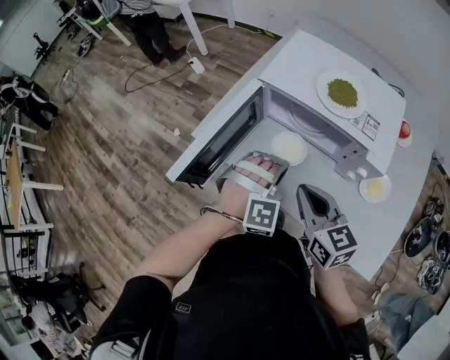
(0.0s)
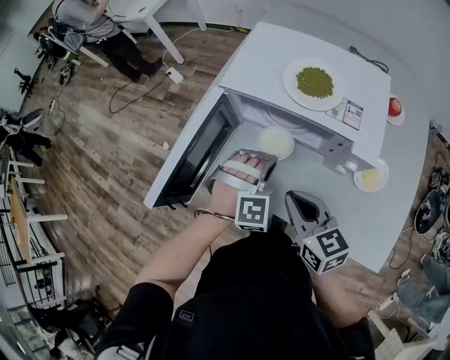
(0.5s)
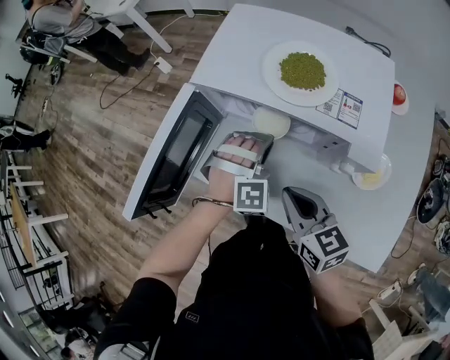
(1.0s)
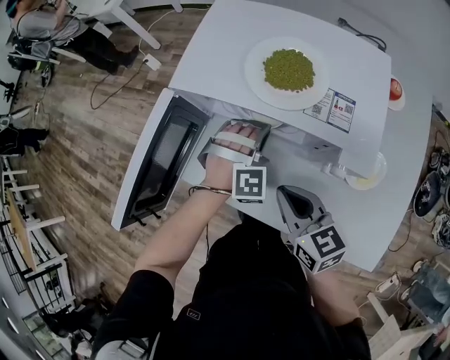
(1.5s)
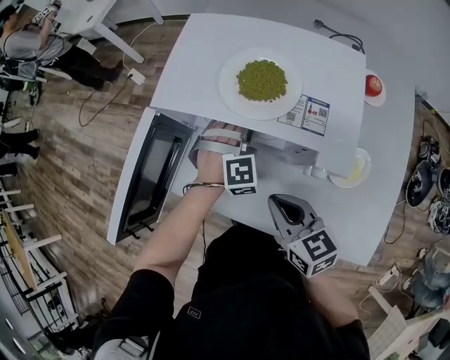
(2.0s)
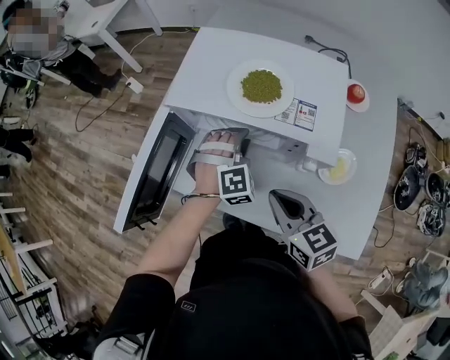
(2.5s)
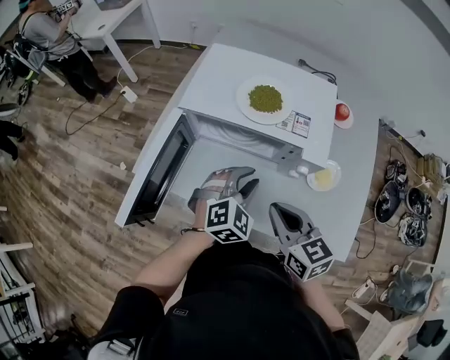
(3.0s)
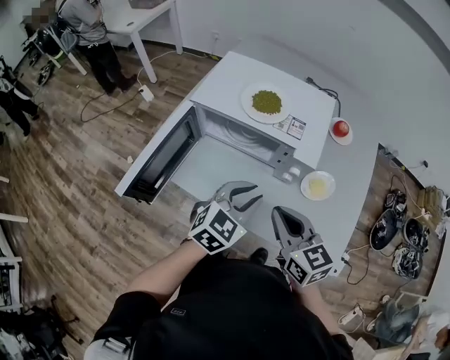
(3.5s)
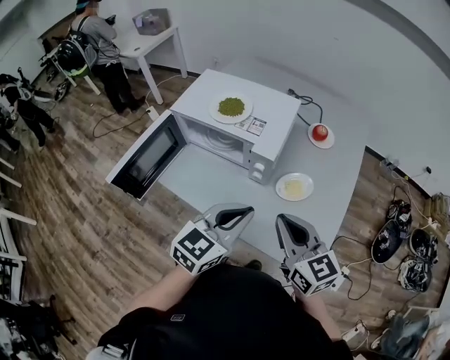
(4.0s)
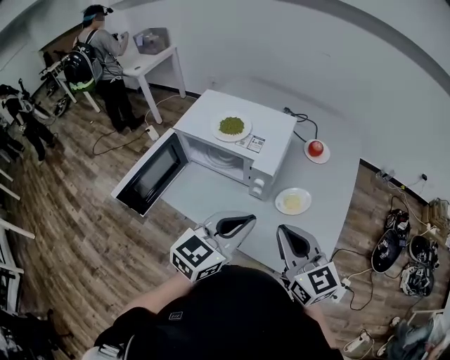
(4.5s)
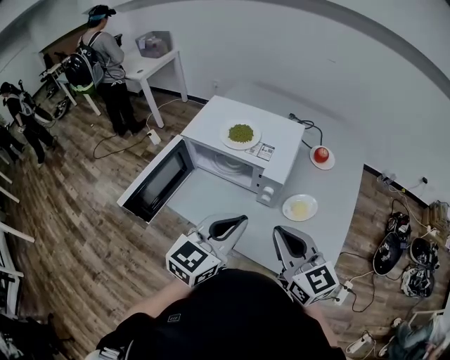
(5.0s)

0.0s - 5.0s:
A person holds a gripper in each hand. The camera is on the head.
0.0s - 2.5s: The left gripper is displaced forward and to the right by some 15 cm. Meanwhile the right gripper moves to the right, some 10 cm.
2.5s - 5.0s: The right gripper moves upward, backward and to the right, roughly 25 cm, and swivels approximately 20 degrees. The left gripper shifts roughly 35 cm backward and upward, twists about 60 degrees counterclockwise, seen from behind, and closes its fingers.

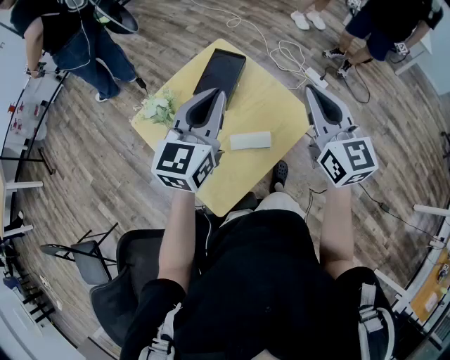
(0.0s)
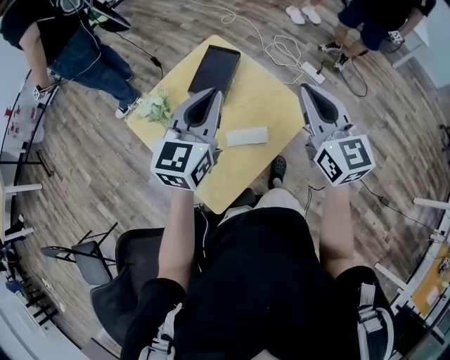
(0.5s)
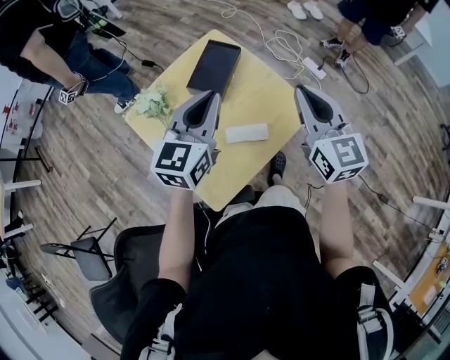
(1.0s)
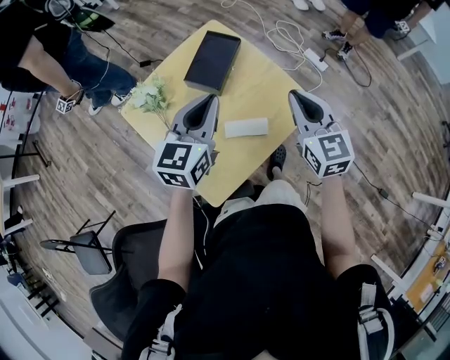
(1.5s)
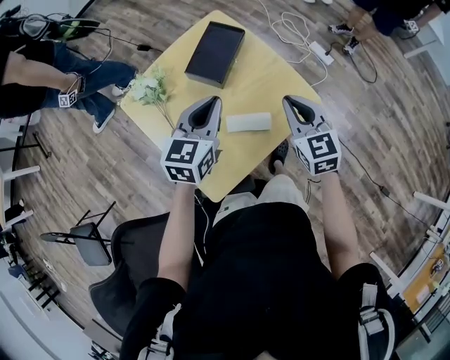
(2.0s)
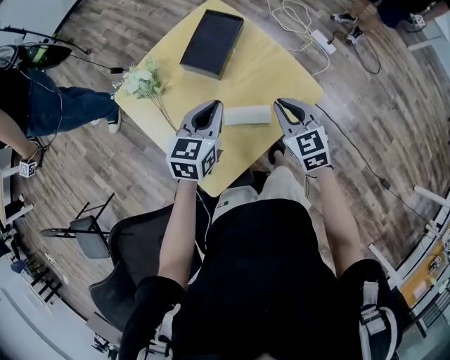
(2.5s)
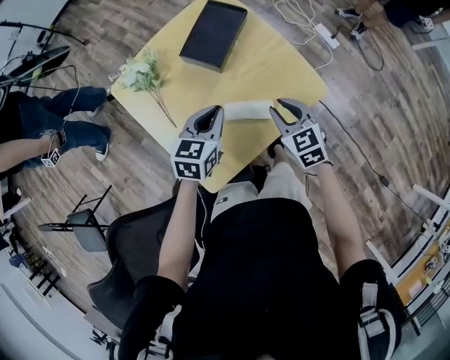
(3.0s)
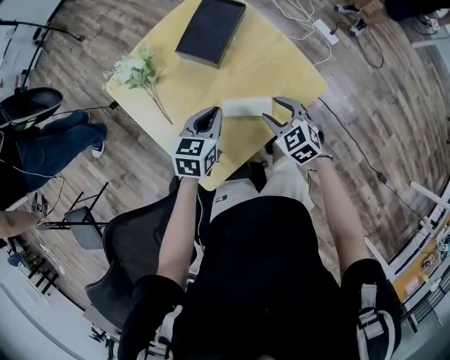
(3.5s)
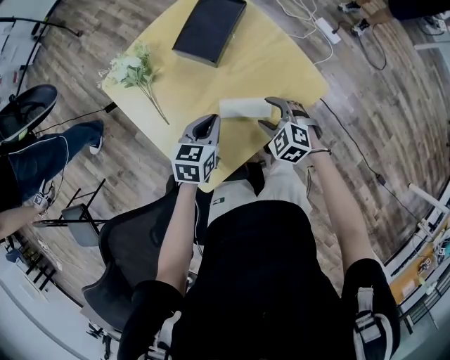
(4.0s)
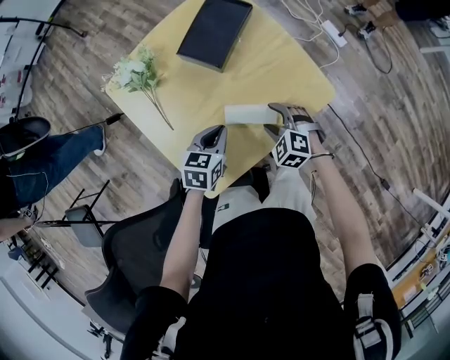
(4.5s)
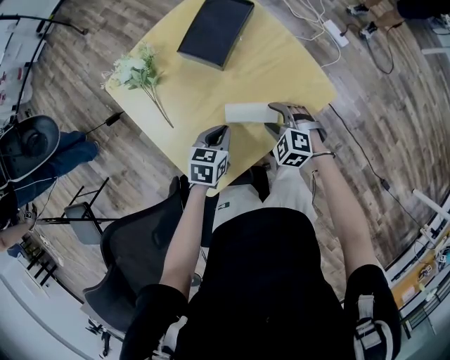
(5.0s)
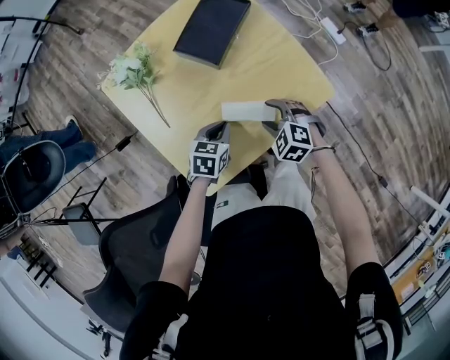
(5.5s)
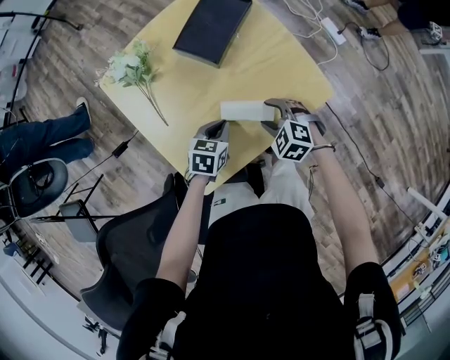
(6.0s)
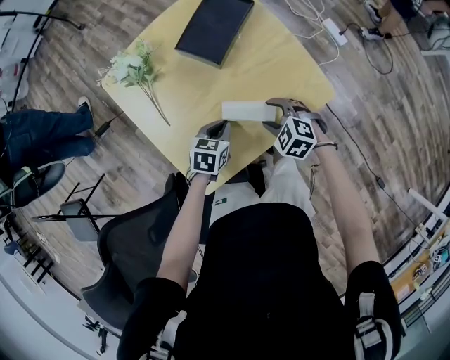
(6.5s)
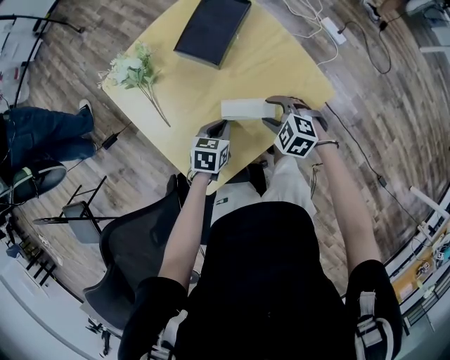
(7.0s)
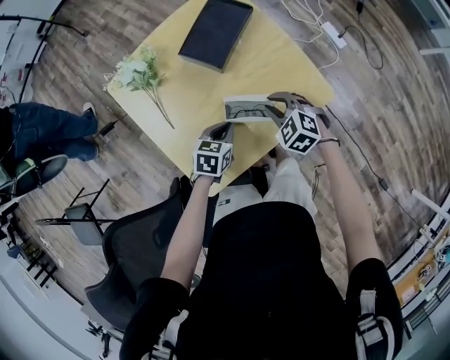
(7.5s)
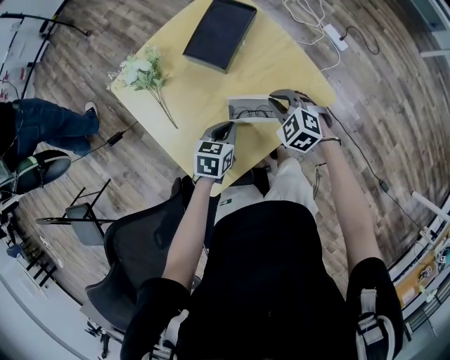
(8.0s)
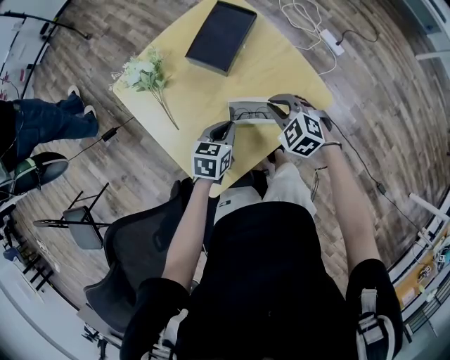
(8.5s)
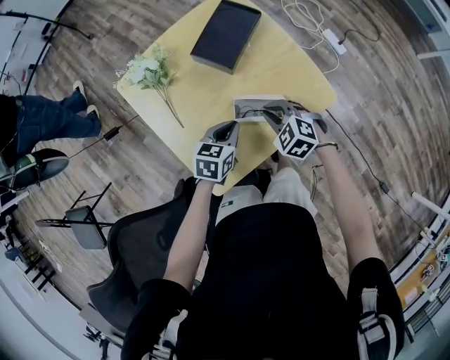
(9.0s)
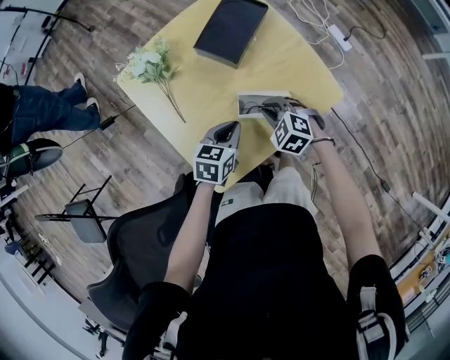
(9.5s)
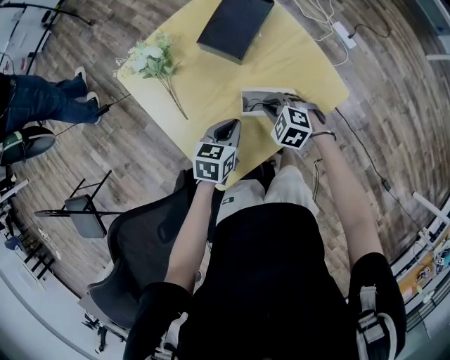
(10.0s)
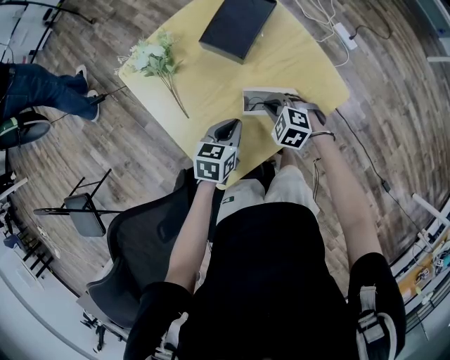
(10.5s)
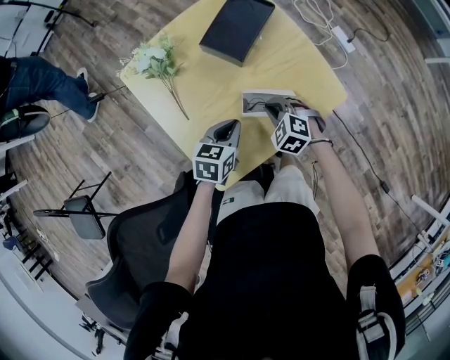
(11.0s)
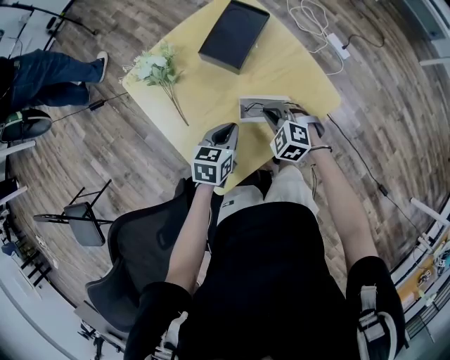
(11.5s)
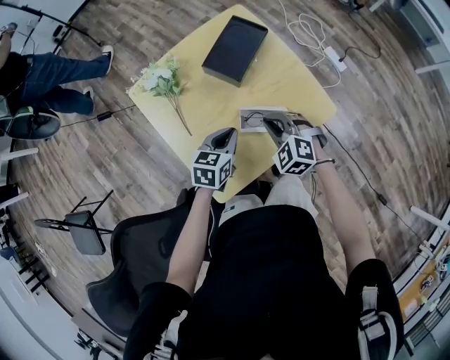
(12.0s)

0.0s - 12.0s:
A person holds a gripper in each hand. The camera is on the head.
0.0s - 2.0s: Both grippers move downward, some 15 cm. The right gripper rotates approximately 20 degrees.
2.0s - 4.0s: The two grippers go about 20 cm downward. The right gripper tips its fingers downward by approximately 30 degrees, and opens; the left gripper rotates some 20 degrees.
4.0s - 6.0s: The left gripper is displaced downward by roughly 10 cm.
6.0s - 8.0s: The right gripper heads forward and upward, covering roughly 10 cm, and closes its fingers.
8.0s - 10.0s: The right gripper is displaced to the left and downward by some 10 cm.
10.0s - 12.0s: The right gripper is displaced upward by some 10 cm. The left gripper moves upward, about 5 cm.

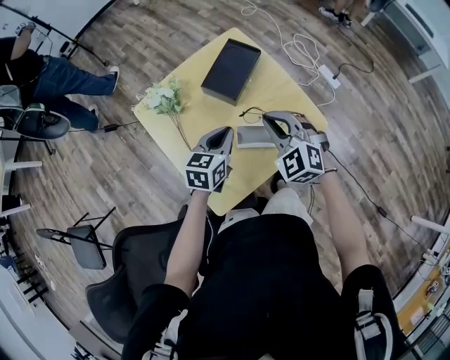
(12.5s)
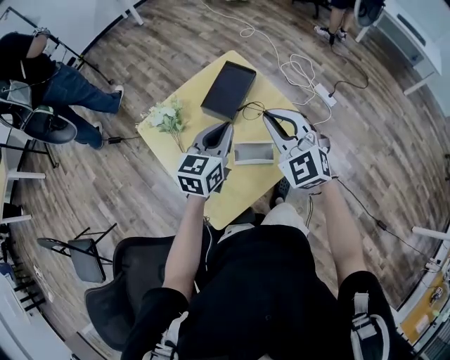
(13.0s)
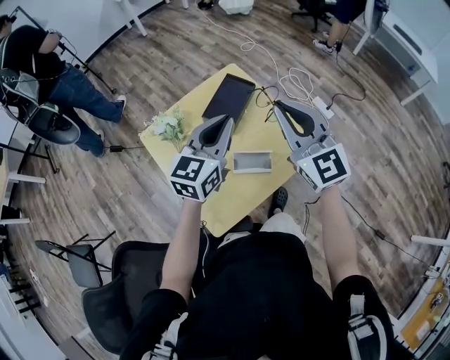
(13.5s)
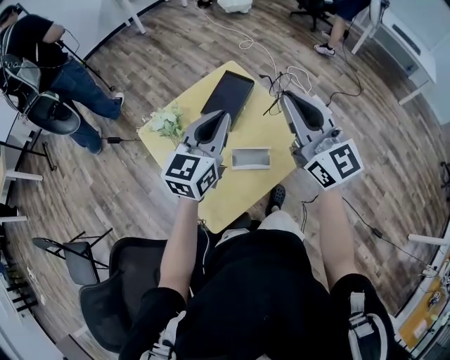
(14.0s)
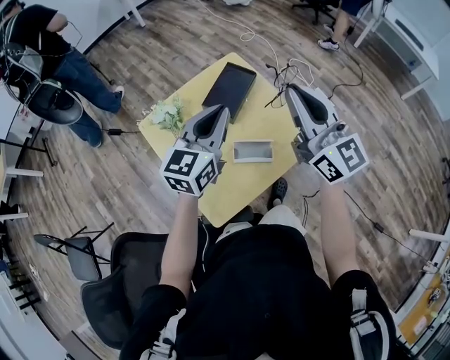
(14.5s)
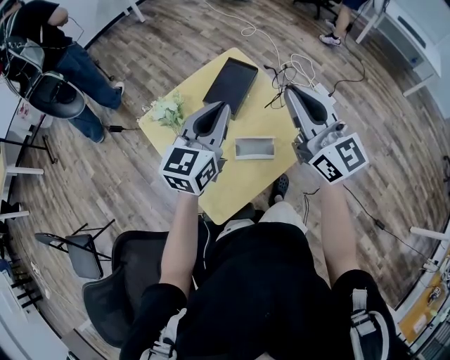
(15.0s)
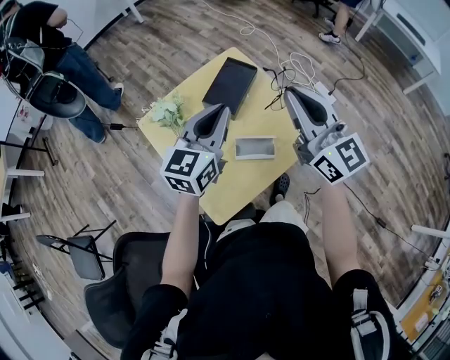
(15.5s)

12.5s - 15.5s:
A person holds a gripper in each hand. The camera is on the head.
12.5s - 14.0s: The two grippers go roughly 25 cm upward. The left gripper swivels some 30 degrees. Meanwhile the right gripper tips its fingers upward by about 40 degrees.
14.0s - 15.5s: The grippers stay close to where they were, moving slightly.

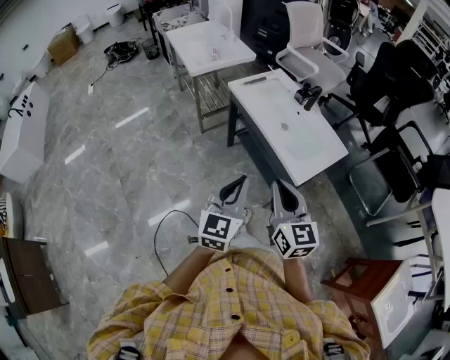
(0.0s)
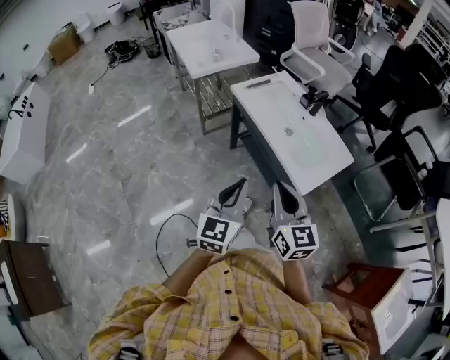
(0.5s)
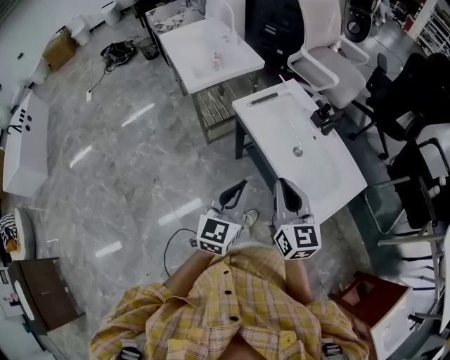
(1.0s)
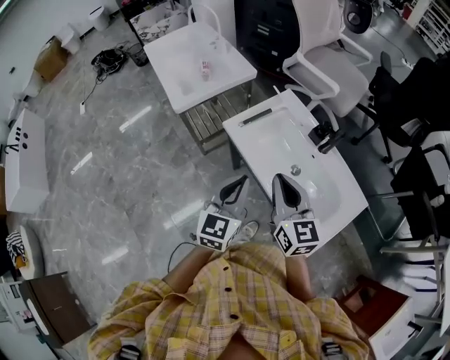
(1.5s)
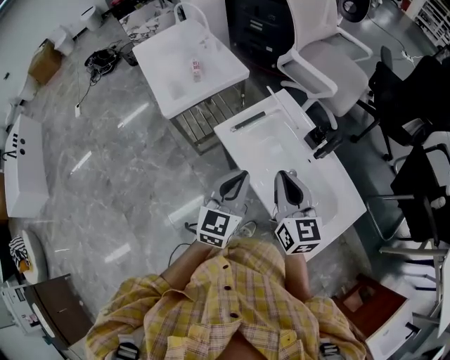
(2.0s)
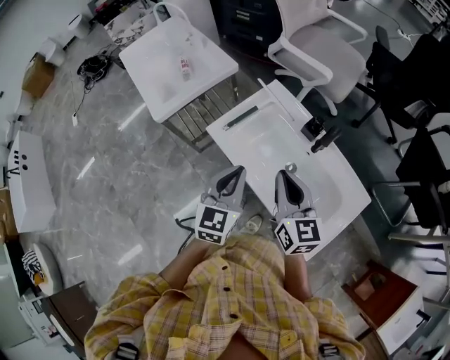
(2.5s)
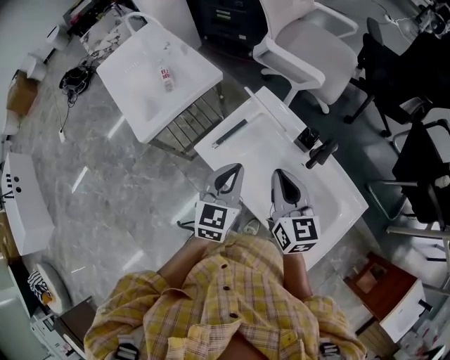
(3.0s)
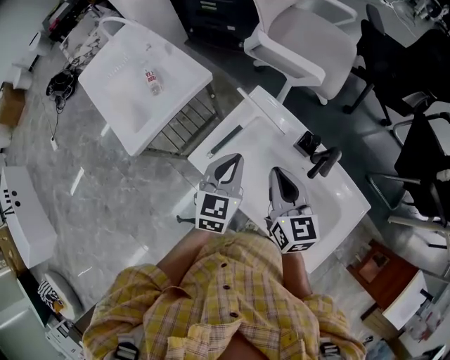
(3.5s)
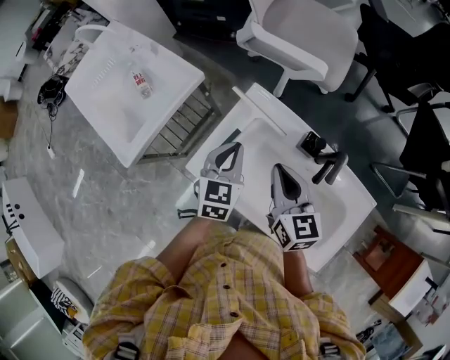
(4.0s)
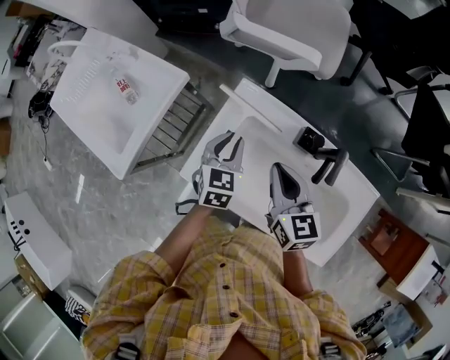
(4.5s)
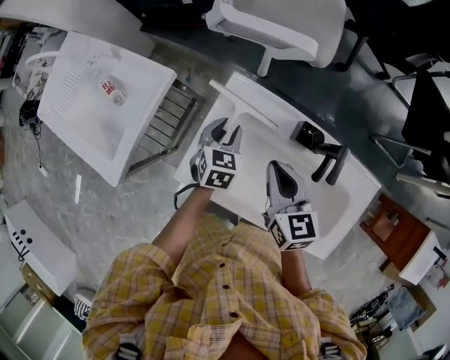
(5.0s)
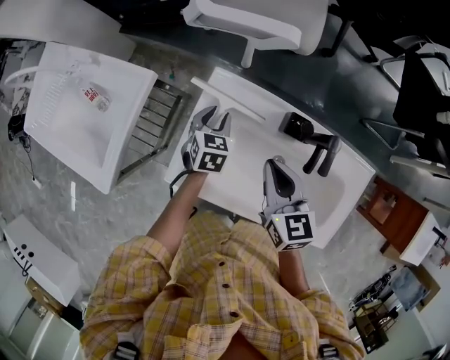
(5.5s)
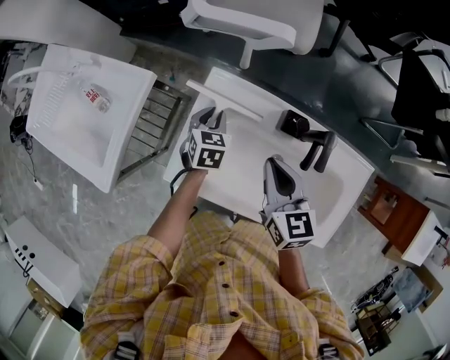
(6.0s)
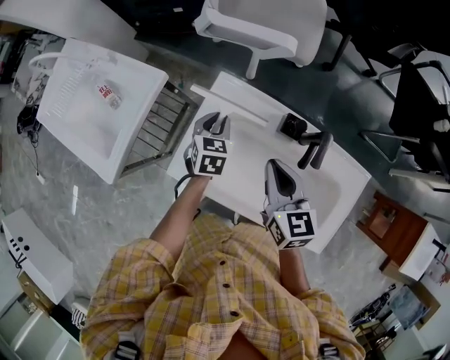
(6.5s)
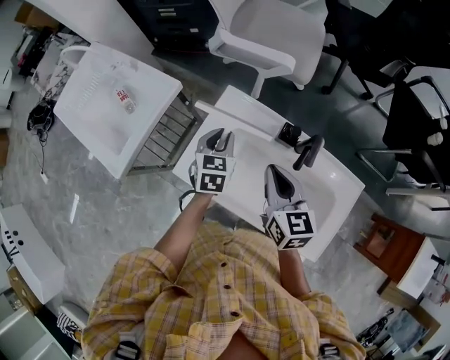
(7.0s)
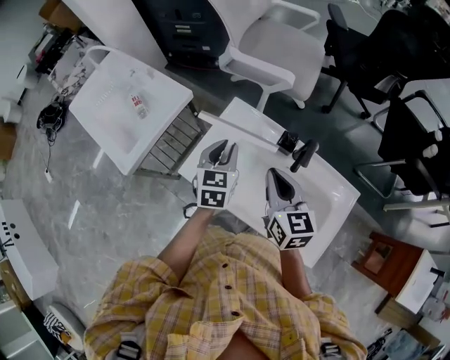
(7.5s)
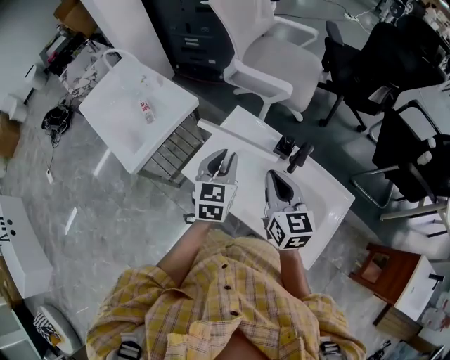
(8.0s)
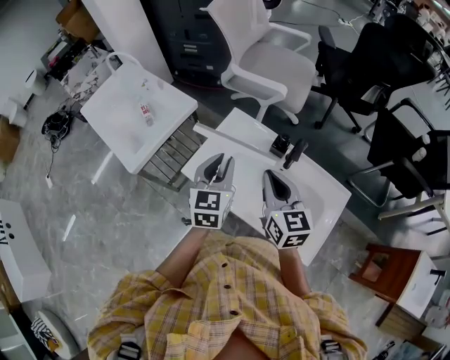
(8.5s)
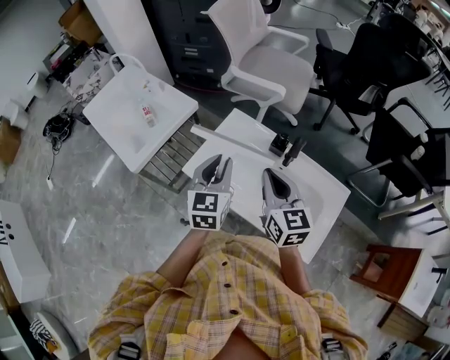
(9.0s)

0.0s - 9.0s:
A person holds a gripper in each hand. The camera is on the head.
0.0s - 2.0s: Both grippers are carried forward, some 40 cm.
2.0s - 4.5s: The grippers both shift forward and downward by approximately 30 cm. The right gripper swivels approximately 30 degrees. Meanwhile the left gripper turns by roughly 30 degrees.
4.5s - 7.0s: The left gripper reaches roughly 10 cm downward, then returns. Meanwhile the right gripper ends up some 5 cm from where it was.
7.0s - 9.0s: The right gripper goes some 15 cm upward and backward, while the left gripper moves upward and backward, approximately 25 cm, and swivels about 20 degrees.
